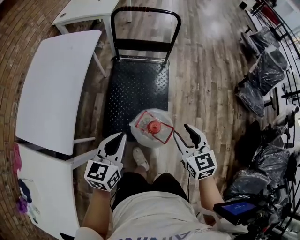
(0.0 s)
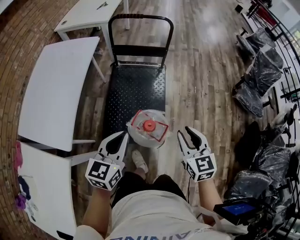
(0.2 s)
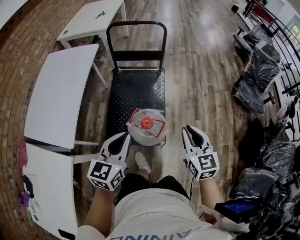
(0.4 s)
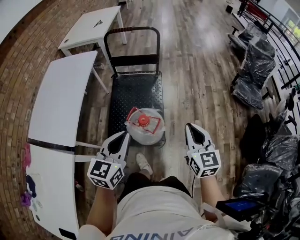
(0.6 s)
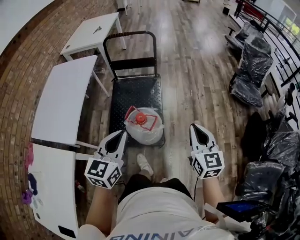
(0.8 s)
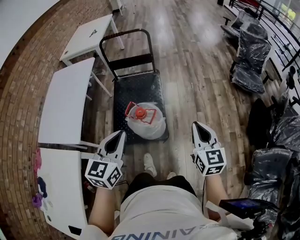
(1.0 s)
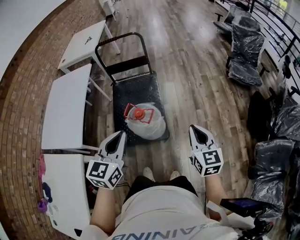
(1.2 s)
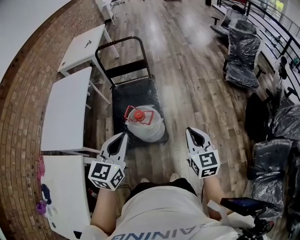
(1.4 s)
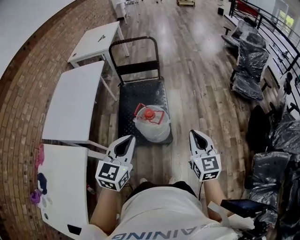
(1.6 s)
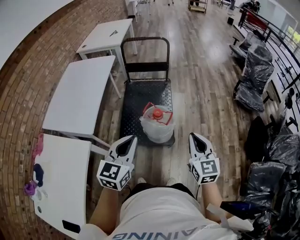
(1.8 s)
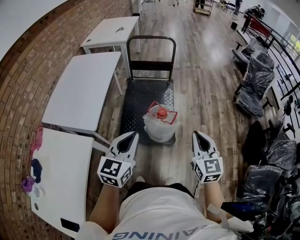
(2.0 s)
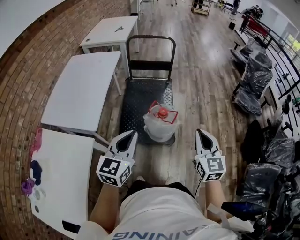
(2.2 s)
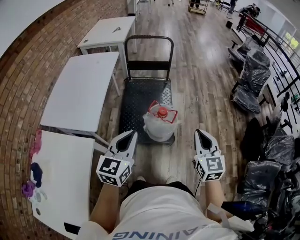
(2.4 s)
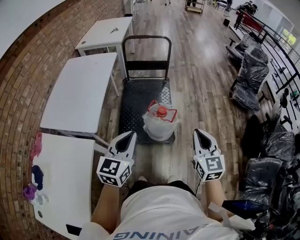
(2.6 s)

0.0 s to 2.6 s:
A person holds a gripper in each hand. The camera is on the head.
0.0 to 1.2 s: The right gripper goes some 30 cm to the right and backward, changes its angle by some 20 degrees, and closes its fingers. Meanwhile the left gripper goes roughly 25 cm backward, to the right and upward.
1.2 to 2.6 s: The two grippers go some 15 cm to the left.

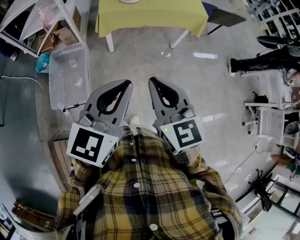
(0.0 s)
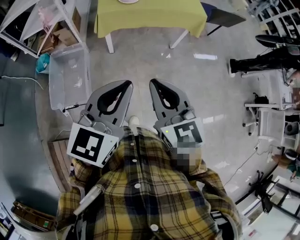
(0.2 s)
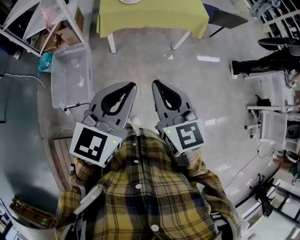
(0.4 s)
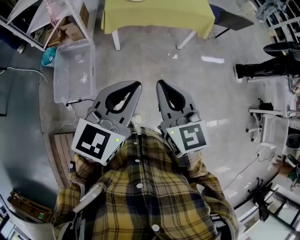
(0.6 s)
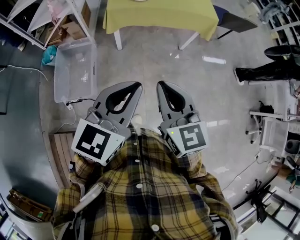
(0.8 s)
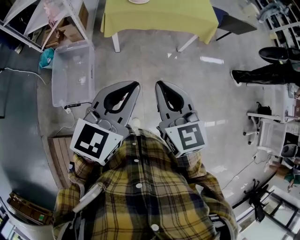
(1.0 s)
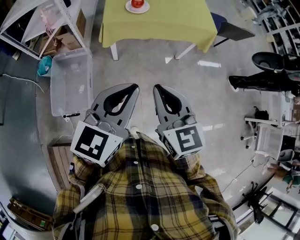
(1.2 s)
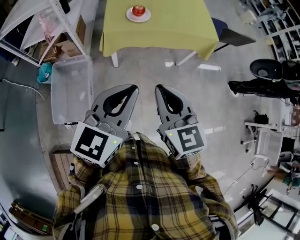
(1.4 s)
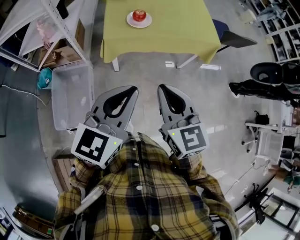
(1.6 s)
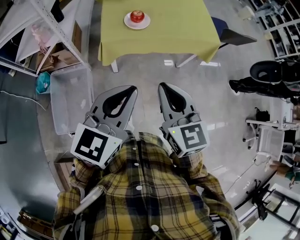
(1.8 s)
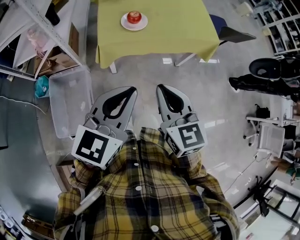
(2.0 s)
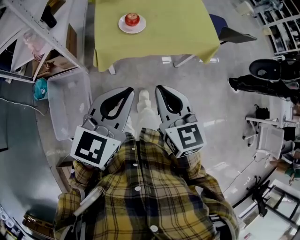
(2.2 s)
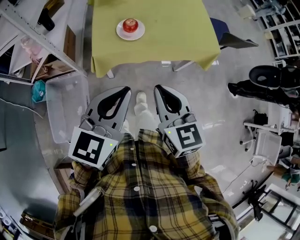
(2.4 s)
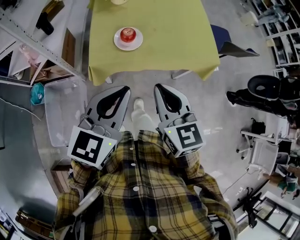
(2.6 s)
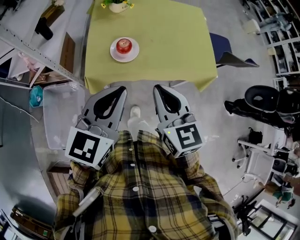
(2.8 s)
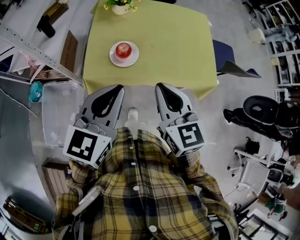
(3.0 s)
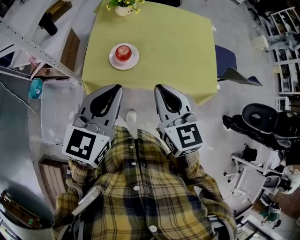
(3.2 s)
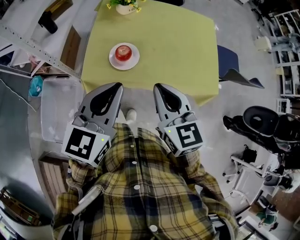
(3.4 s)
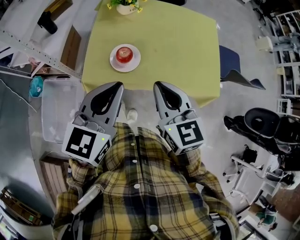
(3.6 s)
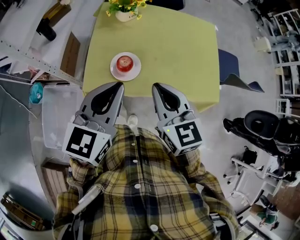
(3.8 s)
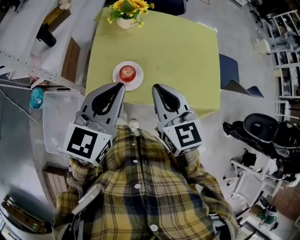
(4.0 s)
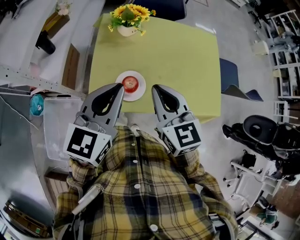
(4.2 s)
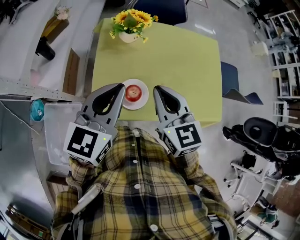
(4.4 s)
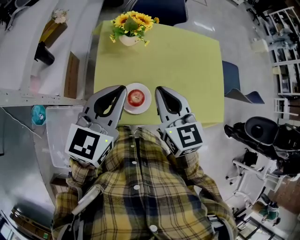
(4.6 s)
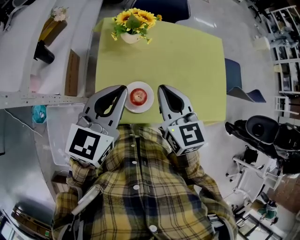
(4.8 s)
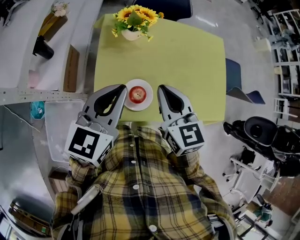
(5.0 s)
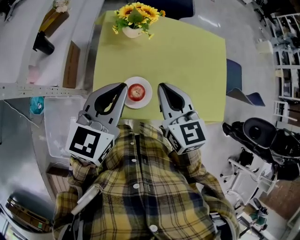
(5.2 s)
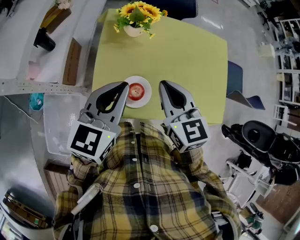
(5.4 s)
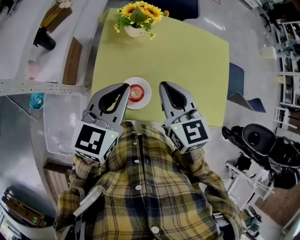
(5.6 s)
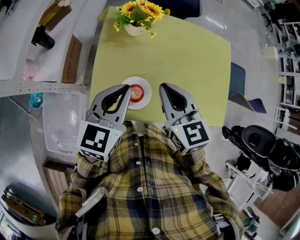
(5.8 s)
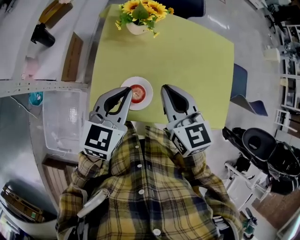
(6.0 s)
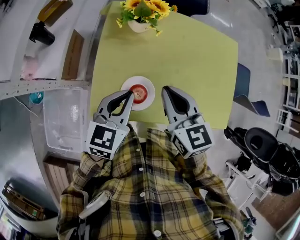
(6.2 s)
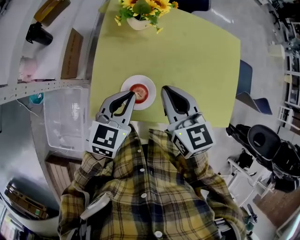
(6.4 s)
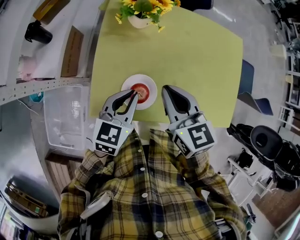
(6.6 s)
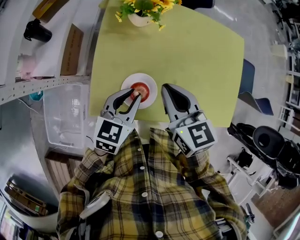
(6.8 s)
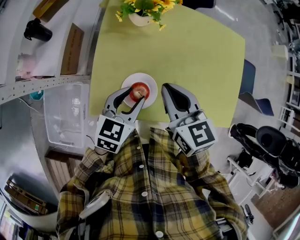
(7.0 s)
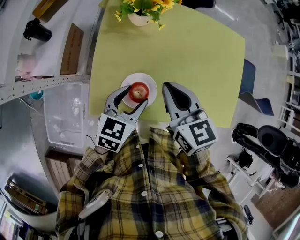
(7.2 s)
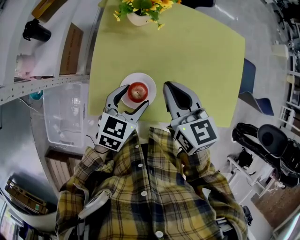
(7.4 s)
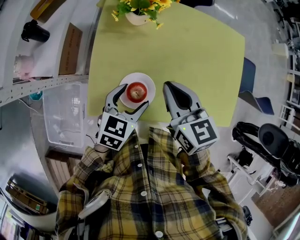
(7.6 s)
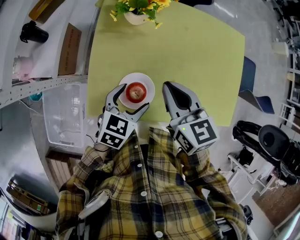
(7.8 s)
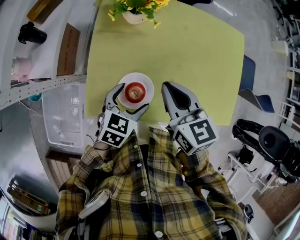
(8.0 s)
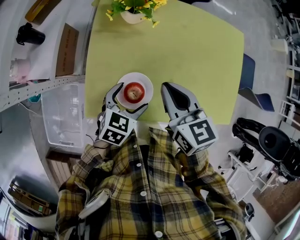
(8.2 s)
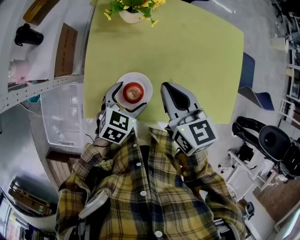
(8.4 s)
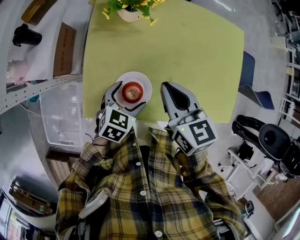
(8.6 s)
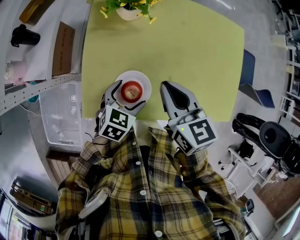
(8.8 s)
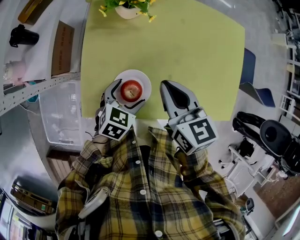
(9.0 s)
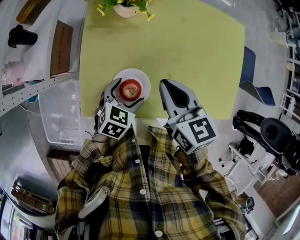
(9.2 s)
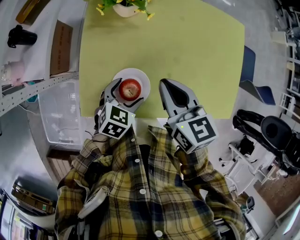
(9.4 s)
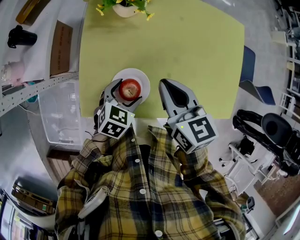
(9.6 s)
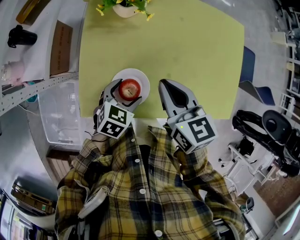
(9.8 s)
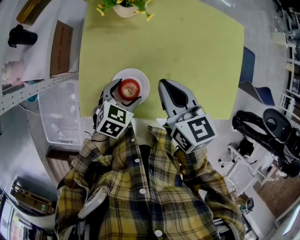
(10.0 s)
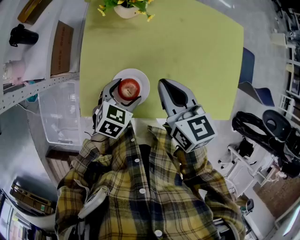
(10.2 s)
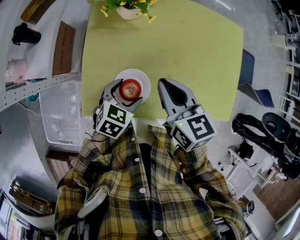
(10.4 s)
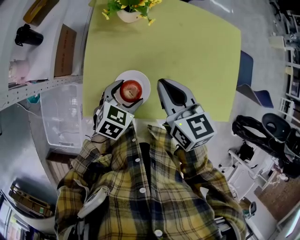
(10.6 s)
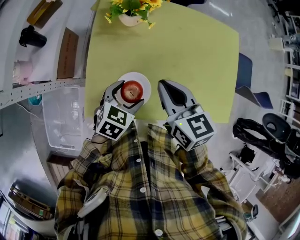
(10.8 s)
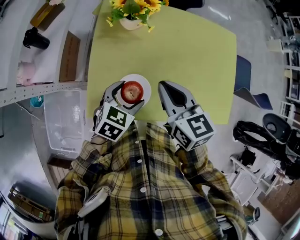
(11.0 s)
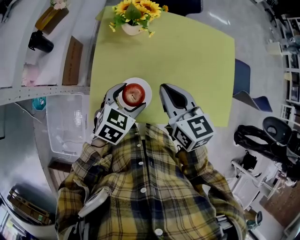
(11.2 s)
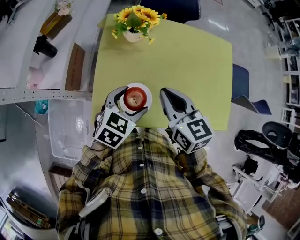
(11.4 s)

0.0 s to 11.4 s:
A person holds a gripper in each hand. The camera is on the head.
0.0 to 1.4 s: Both grippers move forward, approximately 15 cm.
1.4 to 2.8 s: Both grippers travel together forward, roughly 30 cm.
2.8 to 4.2 s: Both grippers move forward, about 20 cm.
4.2 to 5.6 s: The grippers both shift forward by roughly 10 cm.
5.6 to 7.2 s: The left gripper heads downward, covering roughly 15 cm, and opens. Meanwhile the right gripper goes approximately 5 cm downward.
7.2 to 8.6 s: The left gripper goes about 10 cm downward, and opens up.
8.6 to 10.0 s: There are only small adjustments of the grippers.
10.0 to 11.4 s: The left gripper moves upward, roughly 15 cm, while the right gripper moves upward, approximately 5 cm.

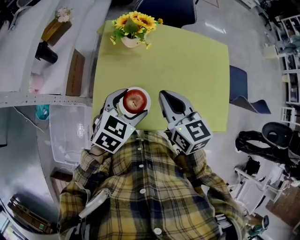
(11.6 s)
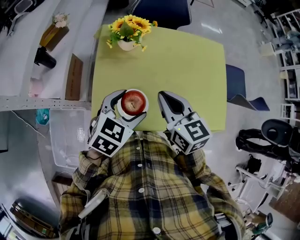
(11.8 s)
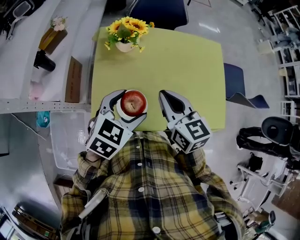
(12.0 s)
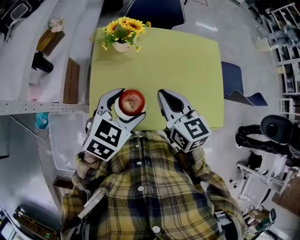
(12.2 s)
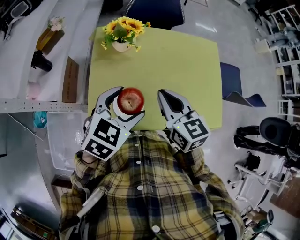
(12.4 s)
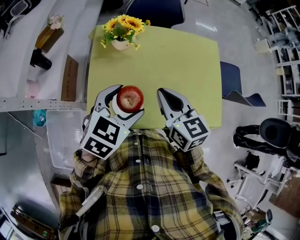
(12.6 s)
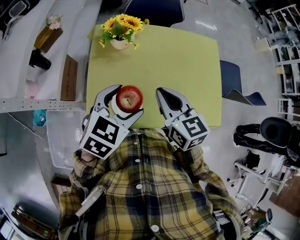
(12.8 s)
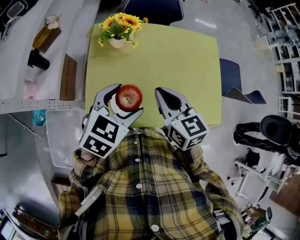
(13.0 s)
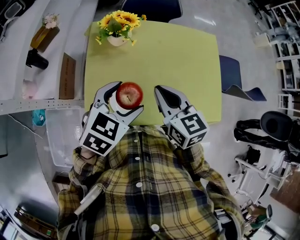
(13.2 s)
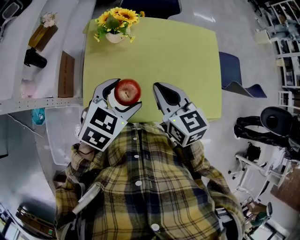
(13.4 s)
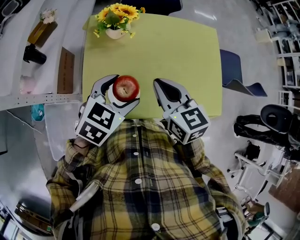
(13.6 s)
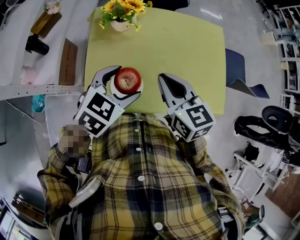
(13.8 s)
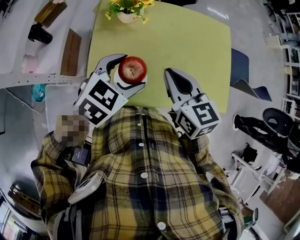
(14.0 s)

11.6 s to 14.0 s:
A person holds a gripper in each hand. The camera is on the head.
11.6 to 12.8 s: The left gripper moves upward, some 5 cm.
12.8 to 14.0 s: The grippers make only small movements.

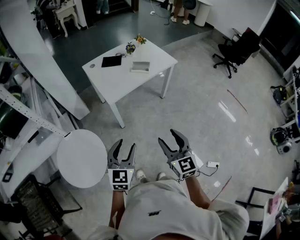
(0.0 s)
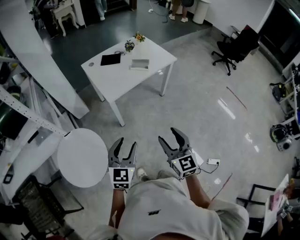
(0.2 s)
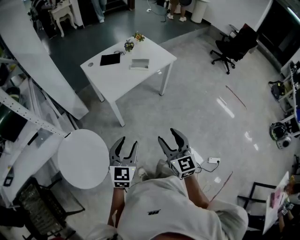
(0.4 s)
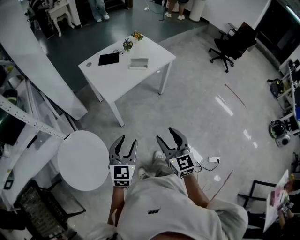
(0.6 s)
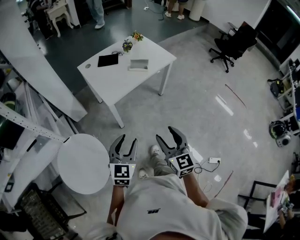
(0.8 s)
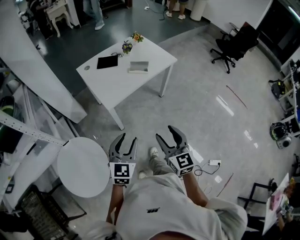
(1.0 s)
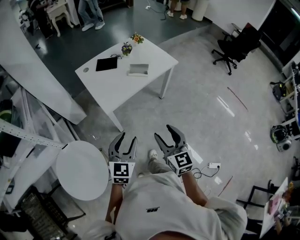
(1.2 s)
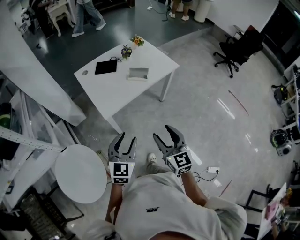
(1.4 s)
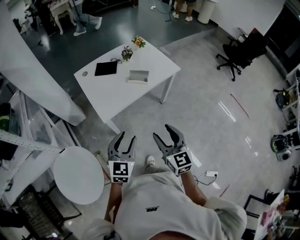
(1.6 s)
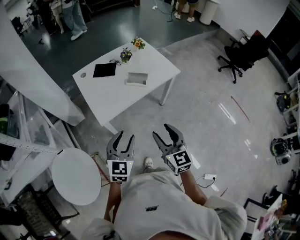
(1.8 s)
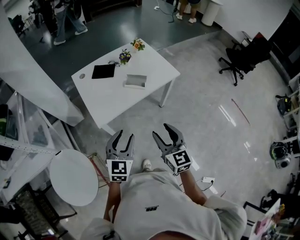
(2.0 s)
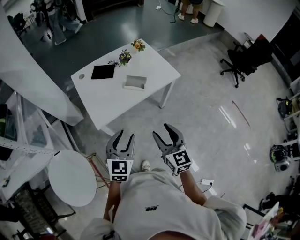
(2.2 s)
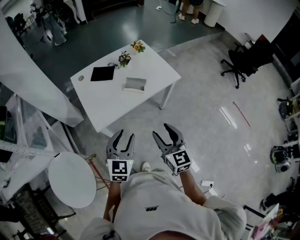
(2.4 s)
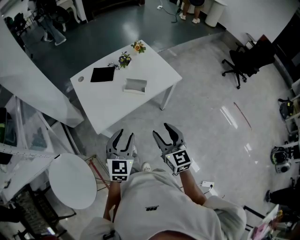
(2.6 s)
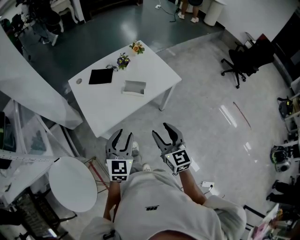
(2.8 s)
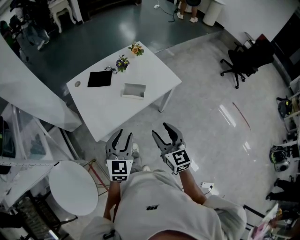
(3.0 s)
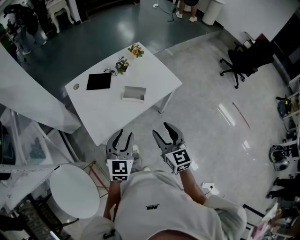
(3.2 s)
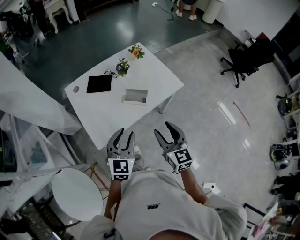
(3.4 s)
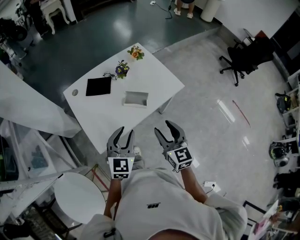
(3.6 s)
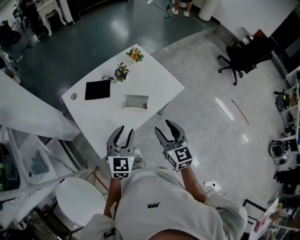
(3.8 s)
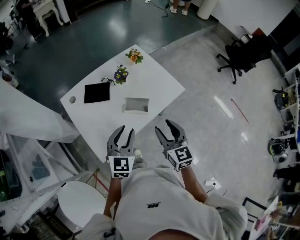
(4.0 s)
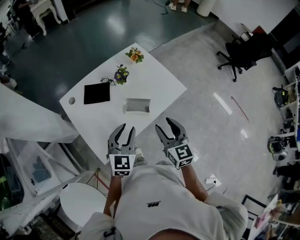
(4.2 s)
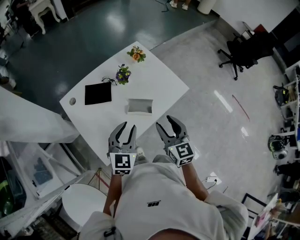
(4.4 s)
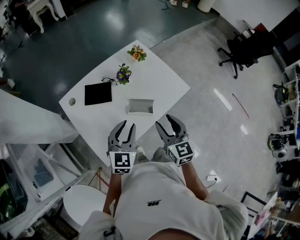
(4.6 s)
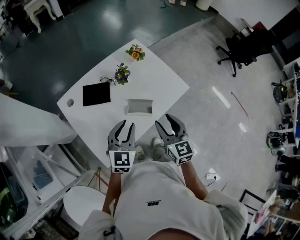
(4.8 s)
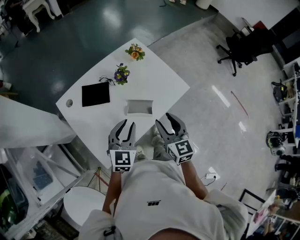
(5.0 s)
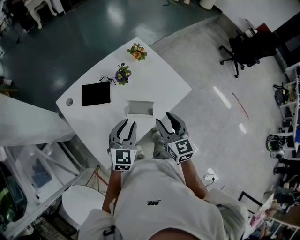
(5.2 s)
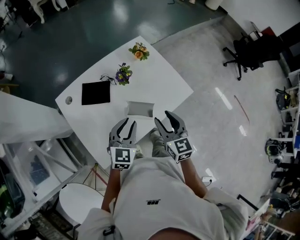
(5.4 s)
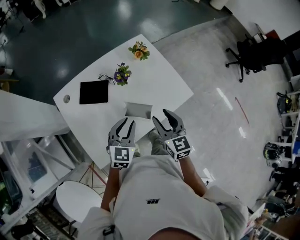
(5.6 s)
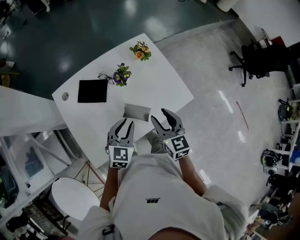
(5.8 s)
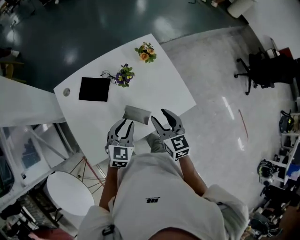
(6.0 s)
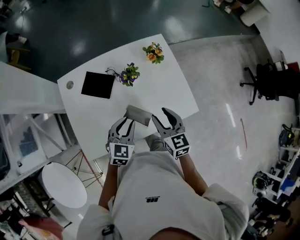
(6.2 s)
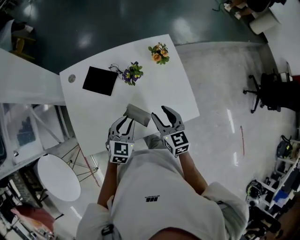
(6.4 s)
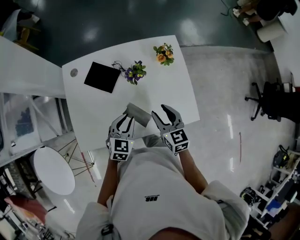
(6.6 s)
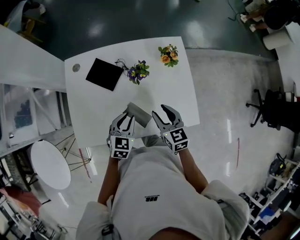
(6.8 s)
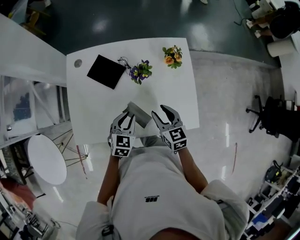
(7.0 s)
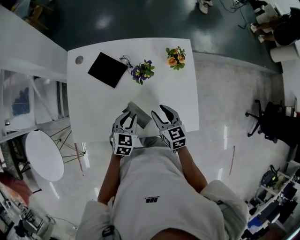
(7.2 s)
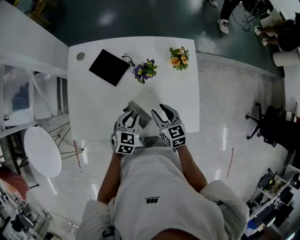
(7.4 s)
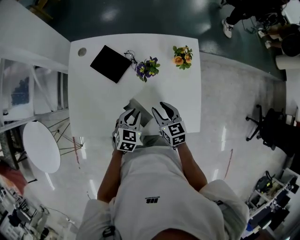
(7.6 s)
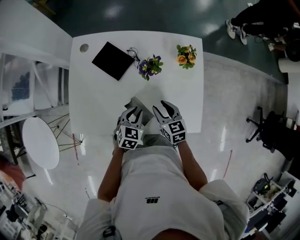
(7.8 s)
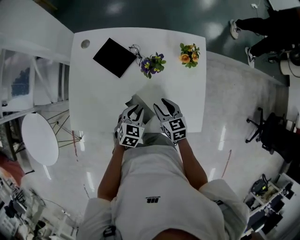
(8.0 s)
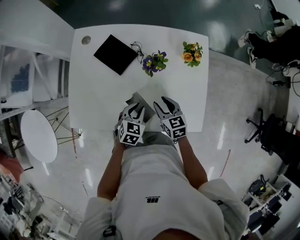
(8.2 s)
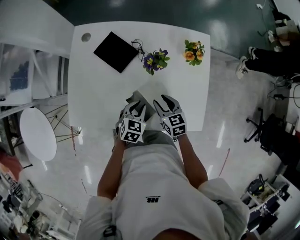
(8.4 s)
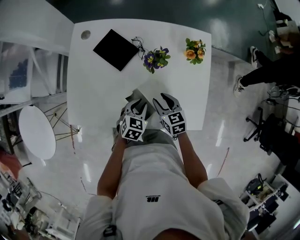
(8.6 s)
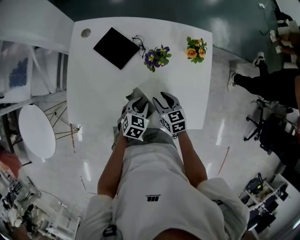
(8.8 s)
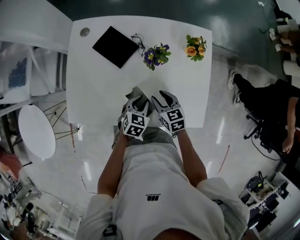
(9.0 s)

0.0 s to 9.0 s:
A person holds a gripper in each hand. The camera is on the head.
0.0 to 1.6 s: Both grippers travel together forward, some 20 cm.
1.6 to 3.0 s: Both grippers travel together forward, roughly 15 cm.
3.0 to 4.4 s: Both grippers travel together forward, some 20 cm.
4.4 to 6.0 s: The left gripper shifts roughly 15 cm forward and downward, while the right gripper heads forward, covering approximately 15 cm.
6.0 to 7.6 s: Both grippers move downward, roughly 15 cm. The right gripper changes its angle by roughly 30 degrees. Meanwhile the left gripper swivels roughly 30 degrees.
7.6 to 9.0 s: The grippers both shift downward by approximately 5 cm.
